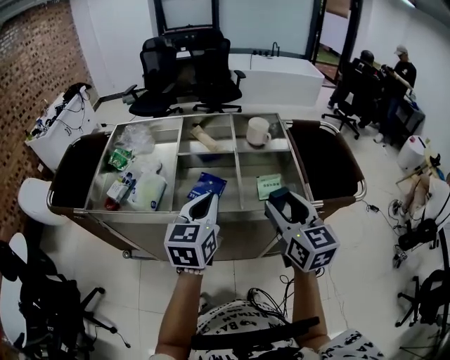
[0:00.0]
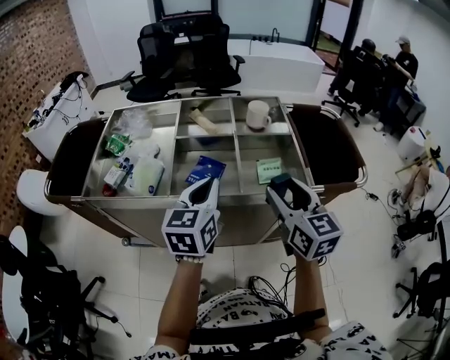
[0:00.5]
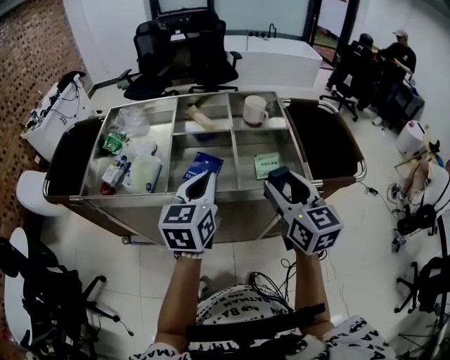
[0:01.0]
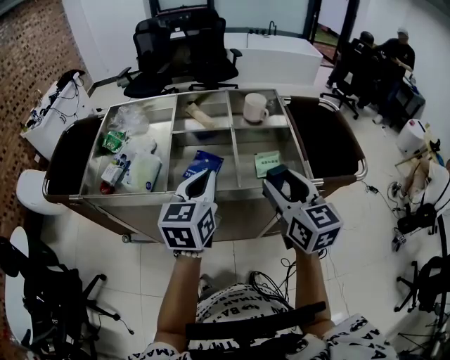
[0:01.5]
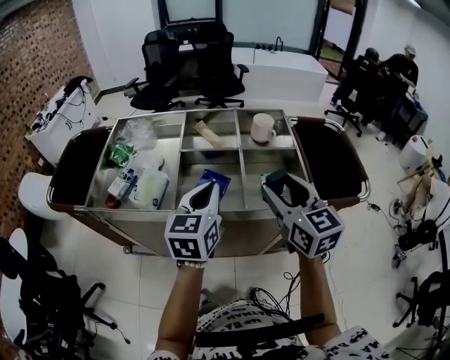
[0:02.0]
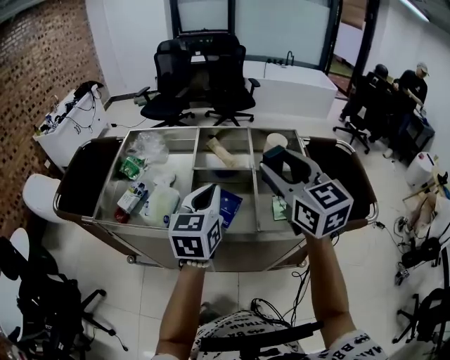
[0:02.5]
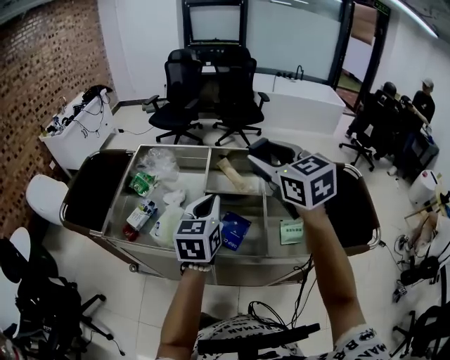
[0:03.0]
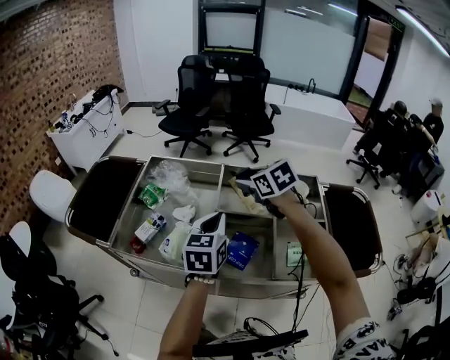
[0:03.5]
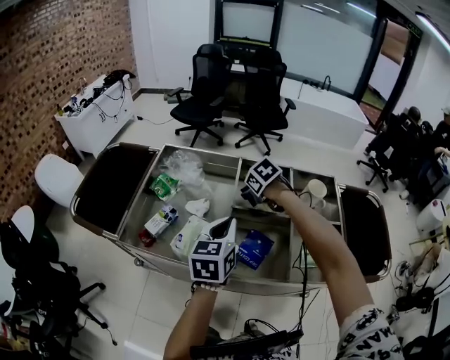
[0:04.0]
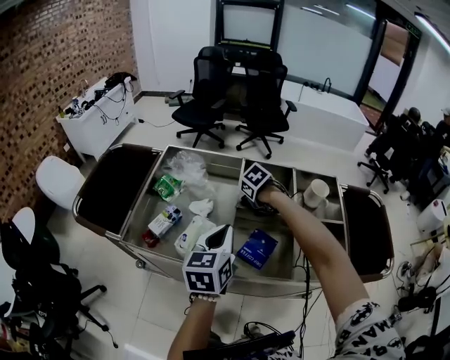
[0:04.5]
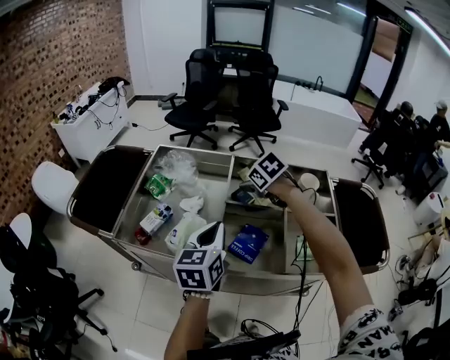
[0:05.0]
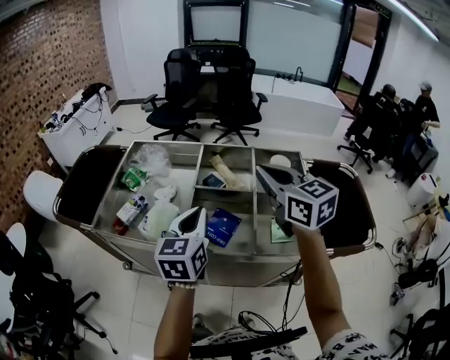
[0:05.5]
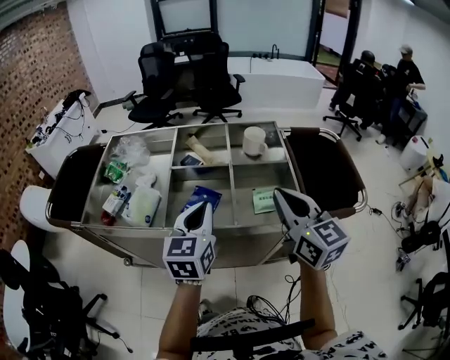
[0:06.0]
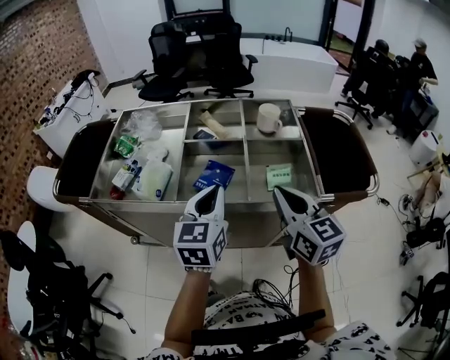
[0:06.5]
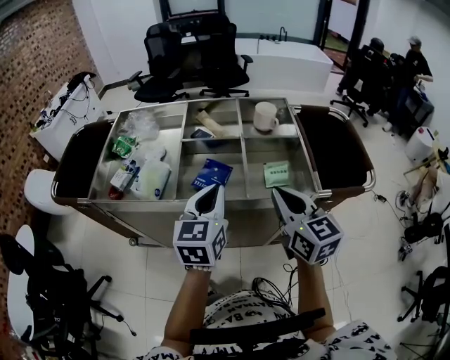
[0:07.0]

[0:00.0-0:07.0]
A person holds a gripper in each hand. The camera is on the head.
0:00.0 to 0:02.0: The right gripper changes place by roughly 5 cm.
0:02.0 to 0:03.5: The left gripper shifts roughly 15 cm forward and to the left. The right gripper heads forward and to the left, covering roughly 30 cm, and angles its fingers downward, by some 30 degrees.
0:03.5 to 0:05.0: The right gripper travels downward by about 10 cm; the left gripper moves roughly 5 cm.
0:05.0 to 0:07.0: The right gripper heads backward and to the right, covering roughly 35 cm, points its fingers about 50 degrees further upward, and closes its fingers; the left gripper goes some 15 cm to the right and backward.

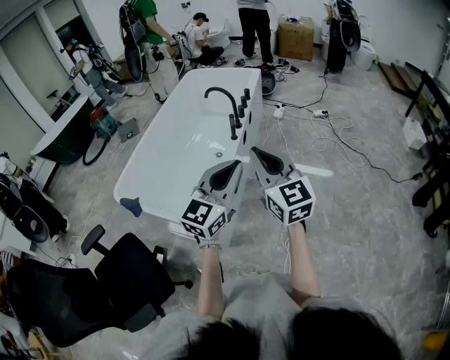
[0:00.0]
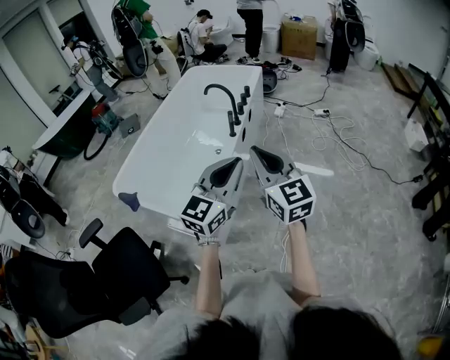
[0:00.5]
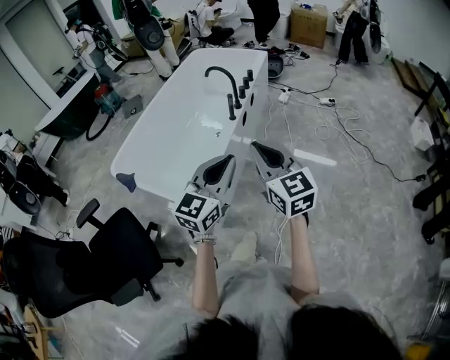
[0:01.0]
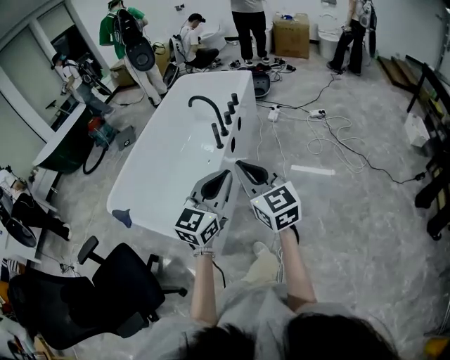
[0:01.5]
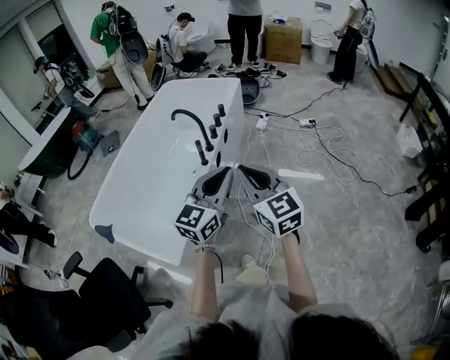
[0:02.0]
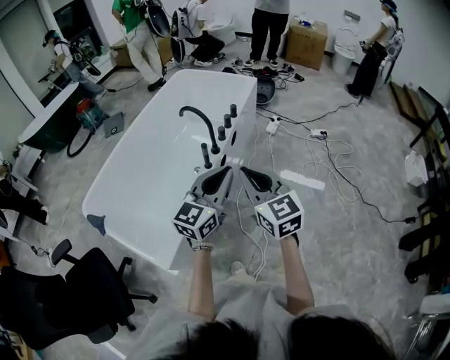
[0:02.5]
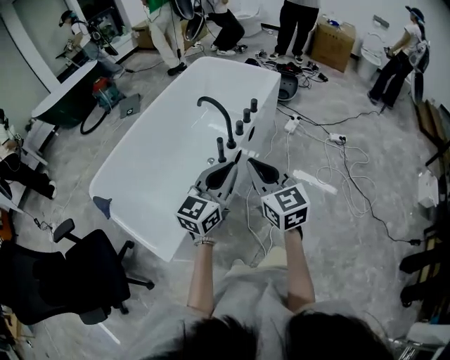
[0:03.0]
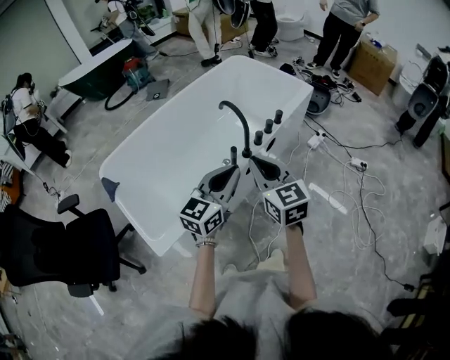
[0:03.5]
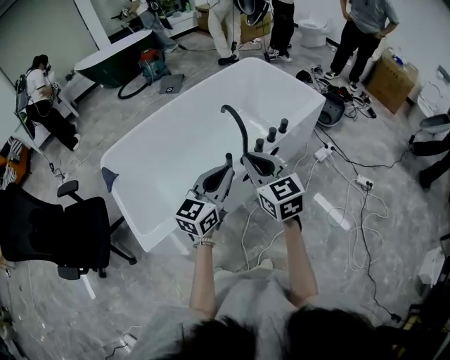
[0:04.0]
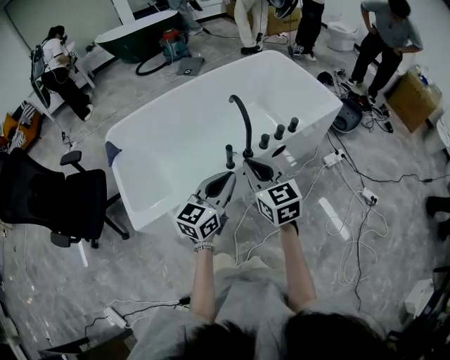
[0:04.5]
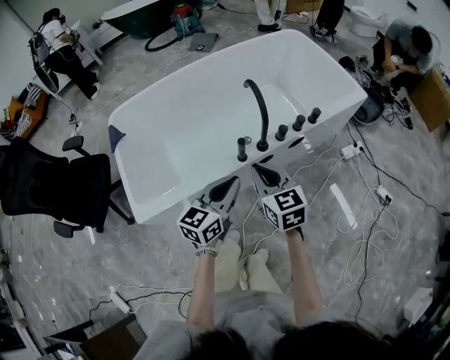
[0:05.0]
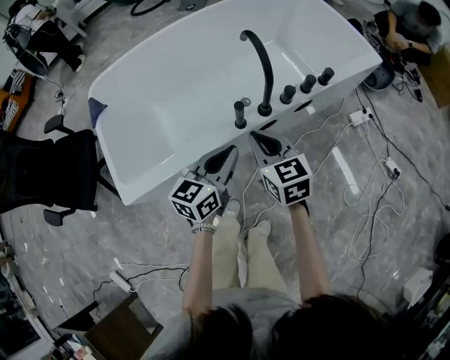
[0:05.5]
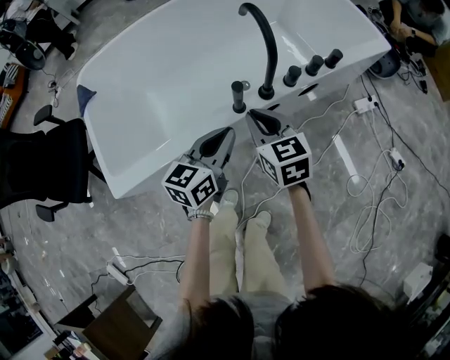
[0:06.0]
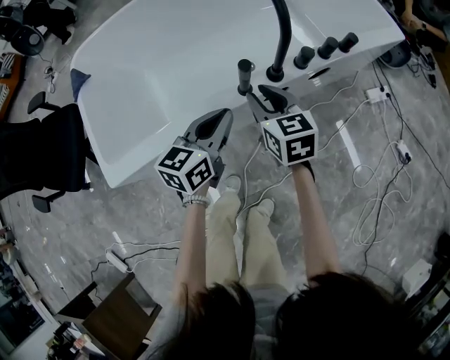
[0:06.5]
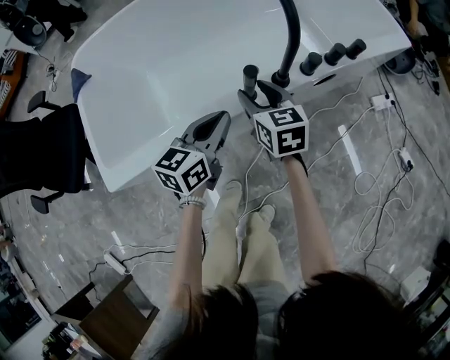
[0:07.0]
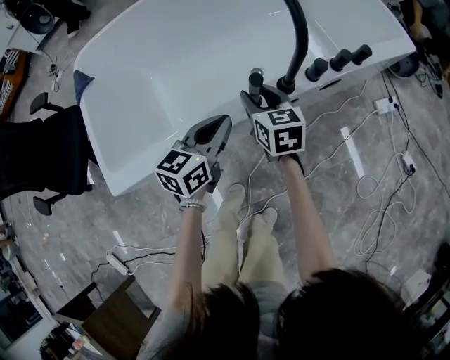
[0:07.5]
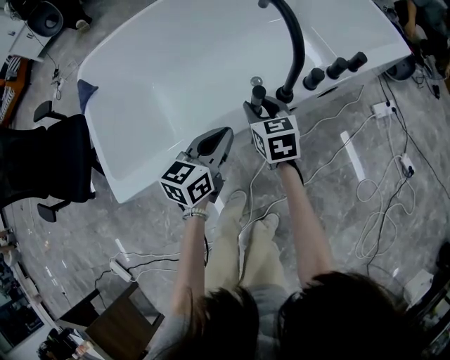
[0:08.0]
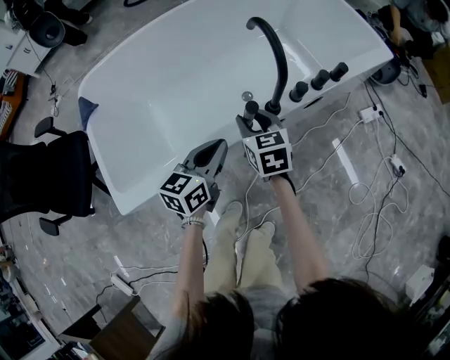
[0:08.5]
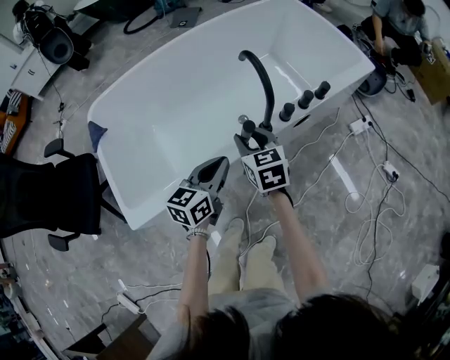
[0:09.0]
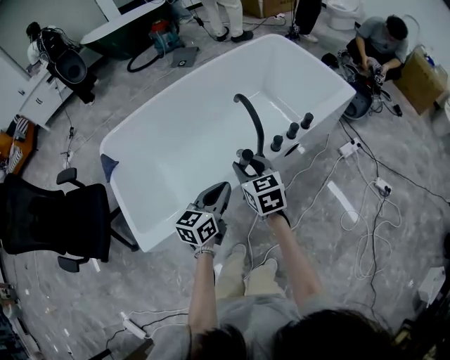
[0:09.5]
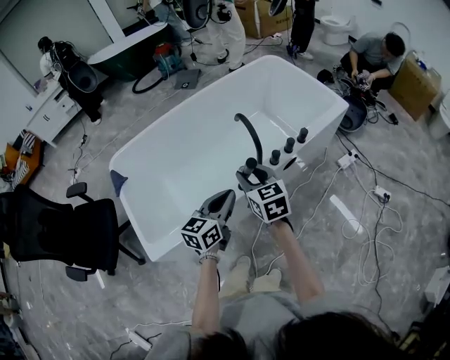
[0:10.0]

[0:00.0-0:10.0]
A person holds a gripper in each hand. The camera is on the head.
0:00.0 to 0:02.0: Both grippers travel together forward and to the right, some 20 cm.
0:02.0 to 0:04.0: The left gripper changes place by roughly 25 cm, and rotates approximately 30 degrees, while the right gripper ends up roughly 30 cm from where it was, and swivels about 30 degrees.
0:04.0 to 0:06.0: Both grippers travel together downward, about 25 cm. The right gripper swivels roughly 20 degrees, while the left gripper turns by some 20 degrees.
0:06.0 to 0:08.0: The right gripper travels downward and forward by approximately 15 cm, and opens up, while the left gripper shifts about 5 cm downward.
0:08.0 to 0:10.0: The two grippers go roughly 25 cm upward.

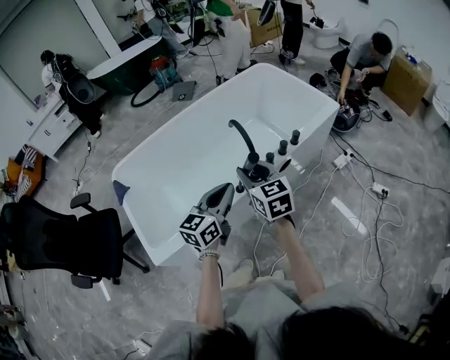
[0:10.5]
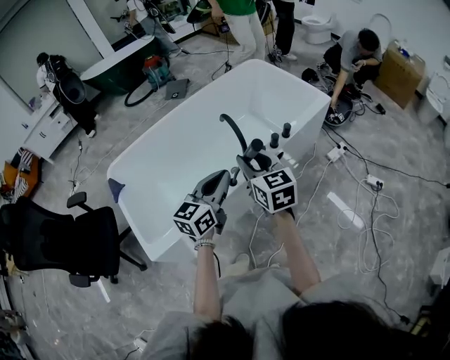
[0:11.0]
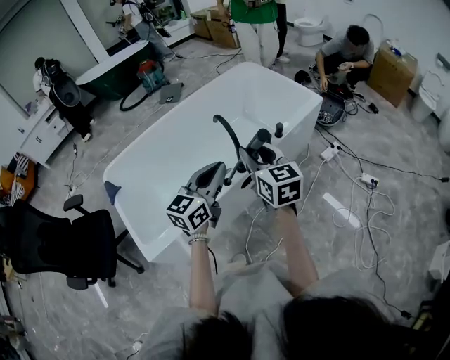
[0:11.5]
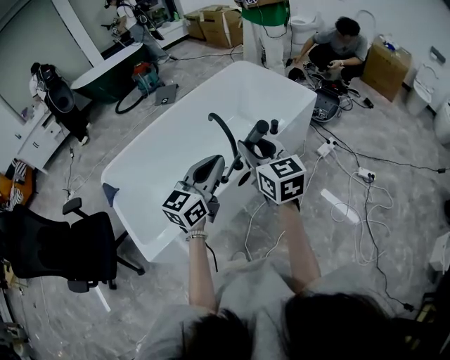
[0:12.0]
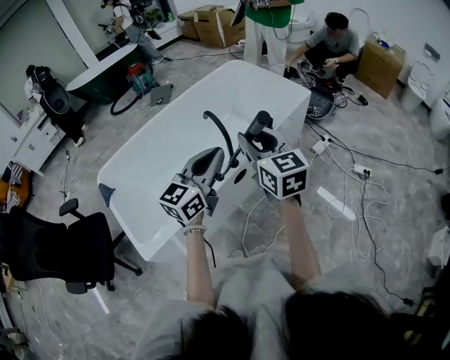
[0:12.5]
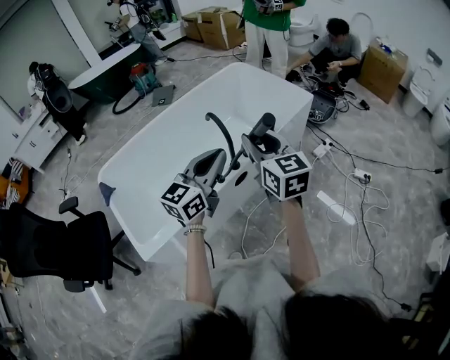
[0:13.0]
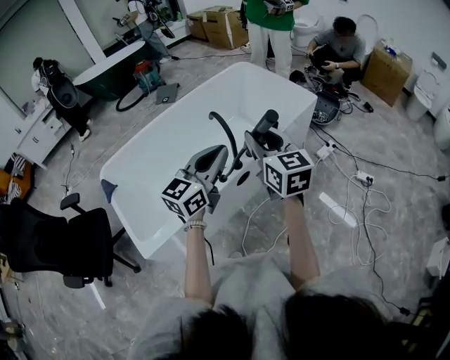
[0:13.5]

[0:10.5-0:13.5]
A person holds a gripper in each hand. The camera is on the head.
0:10.5 to 0:12.0: The left gripper is displaced upward by about 10 cm; the right gripper shifts about 10 cm upward and to the right.
0:12.0 to 0:13.5: There are only small adjustments of the grippers.

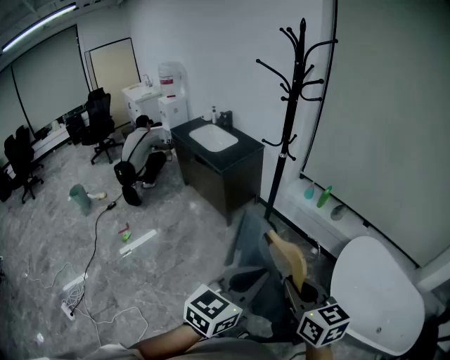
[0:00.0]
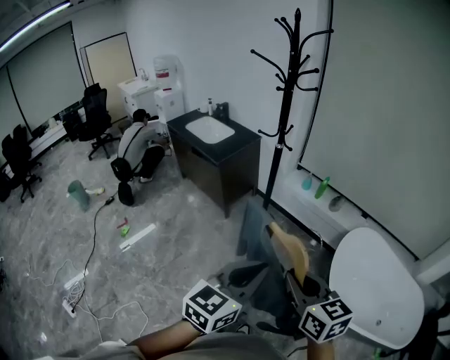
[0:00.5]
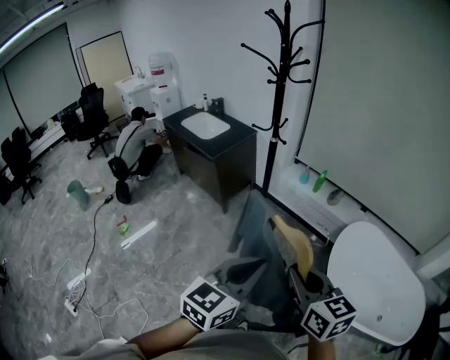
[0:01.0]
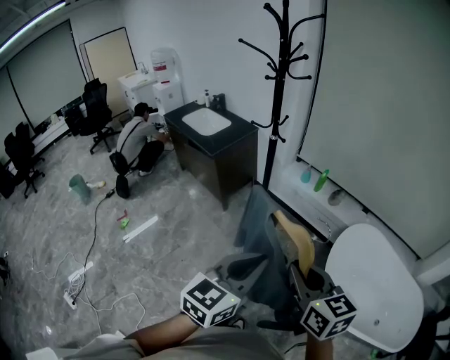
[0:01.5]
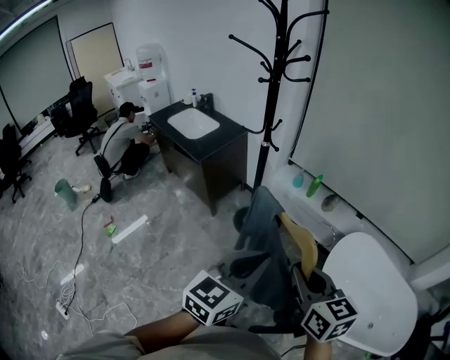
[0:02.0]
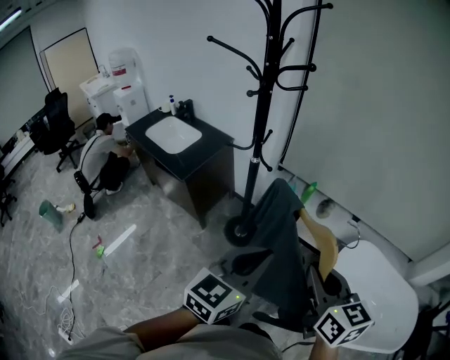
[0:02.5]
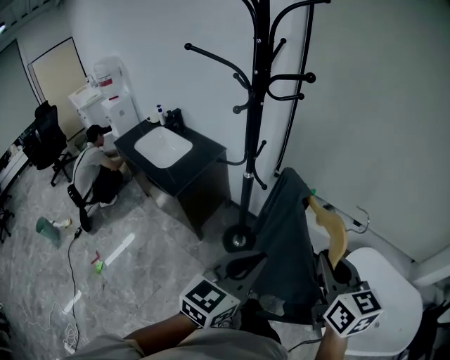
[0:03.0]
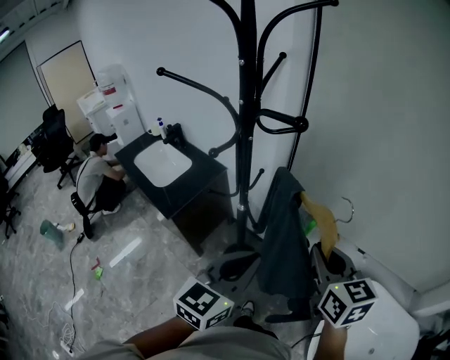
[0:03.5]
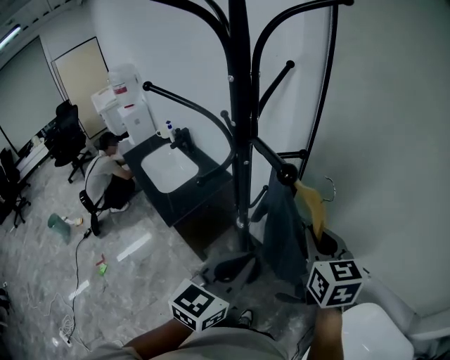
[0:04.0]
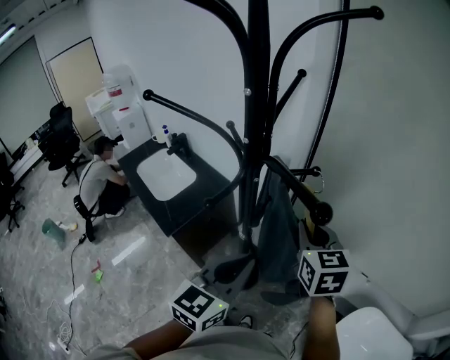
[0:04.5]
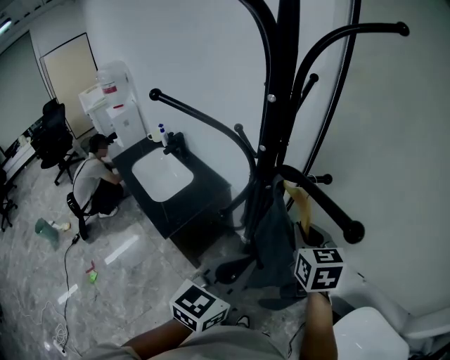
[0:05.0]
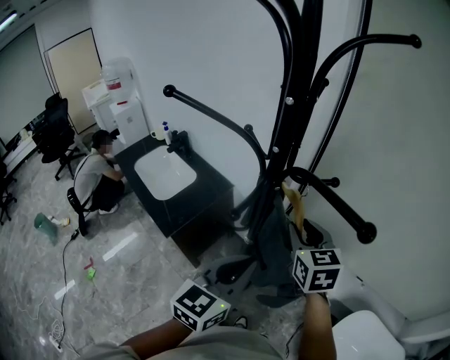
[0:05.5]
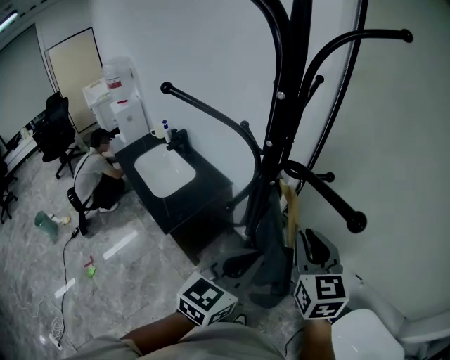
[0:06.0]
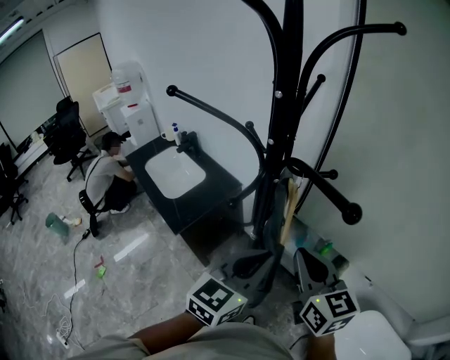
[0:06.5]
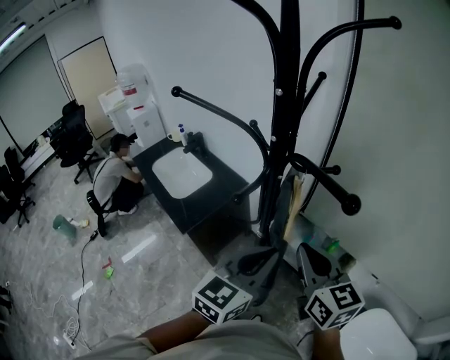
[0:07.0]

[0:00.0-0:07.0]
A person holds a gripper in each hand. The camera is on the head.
0:00.0 to 0:02.0: Both grippers move forward and to the right, about 15 cm.
0:02.0 to 0:03.5: Both grippers travel together forward, approximately 40 cm.
0:03.5 to 0:05.0: The left gripper moves forward and to the left, roughly 15 cm; the right gripper is displaced forward and to the left by about 20 cm.
0:05.0 to 0:07.0: The right gripper travels backward by some 10 cm, and turns by approximately 20 degrees.
